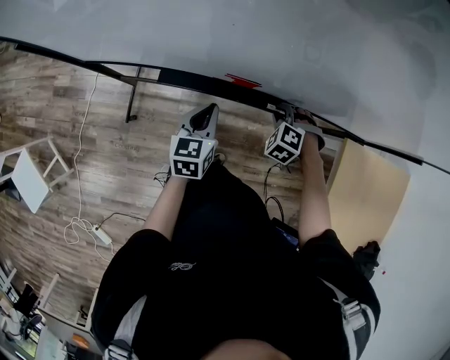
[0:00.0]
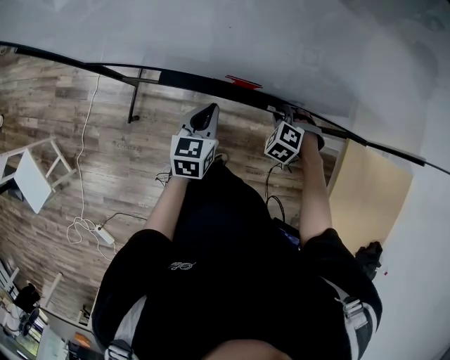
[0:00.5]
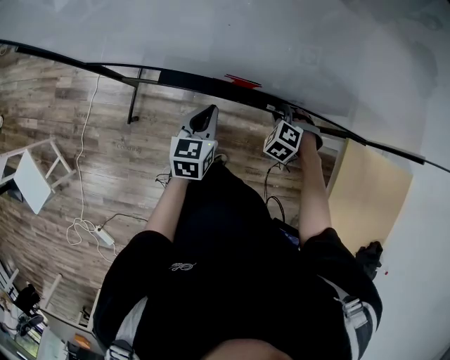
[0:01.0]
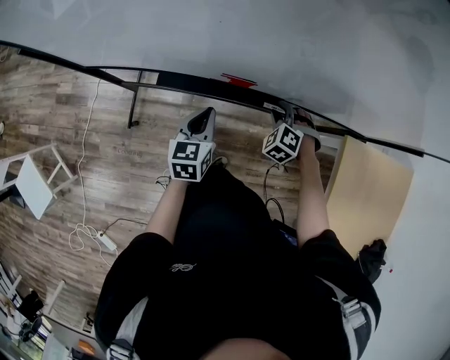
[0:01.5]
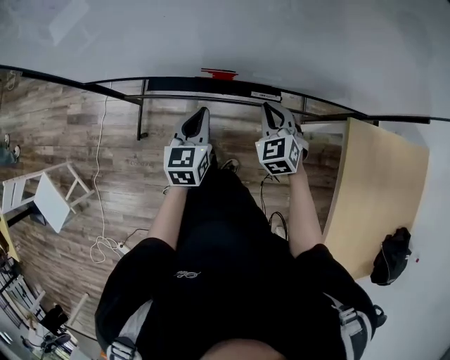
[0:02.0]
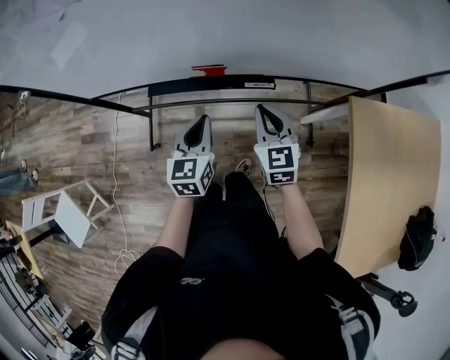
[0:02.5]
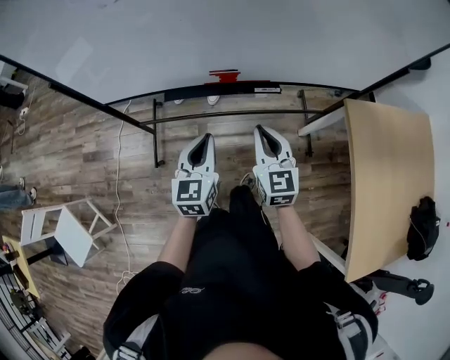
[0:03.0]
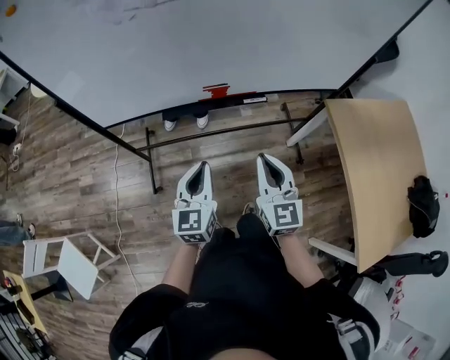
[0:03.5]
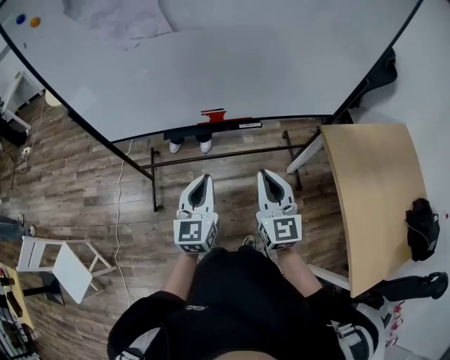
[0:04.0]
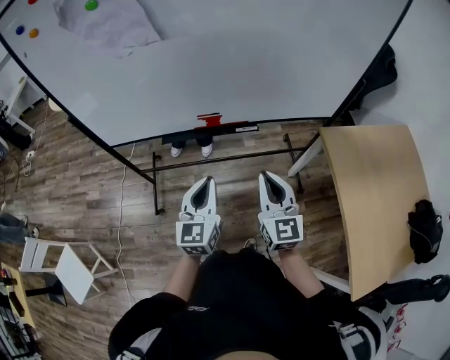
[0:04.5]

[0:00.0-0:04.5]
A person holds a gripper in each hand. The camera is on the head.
0:00.0 to 0:02.0: The right gripper is displaced upward by about 10 cm, and turns by roughly 50 degrees; the left gripper changes place by about 5 cm.
0:02.0 to 0:04.5: The grippers both shift backward and upward by about 30 cm. The right gripper points its fingers about 30 degrees further upward. The left gripper turns by roughly 20 degrees.

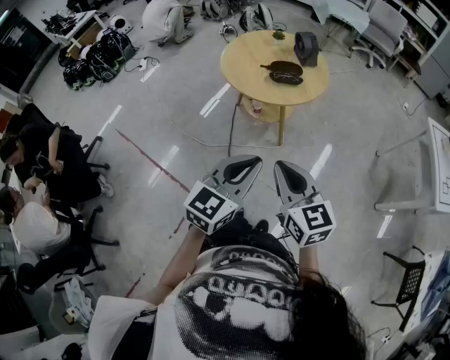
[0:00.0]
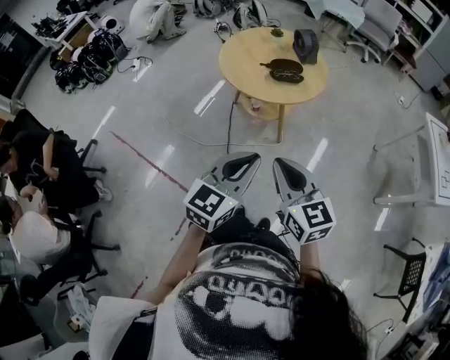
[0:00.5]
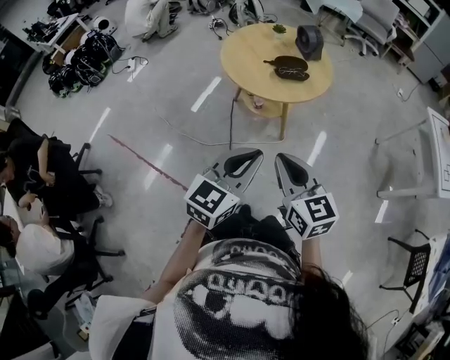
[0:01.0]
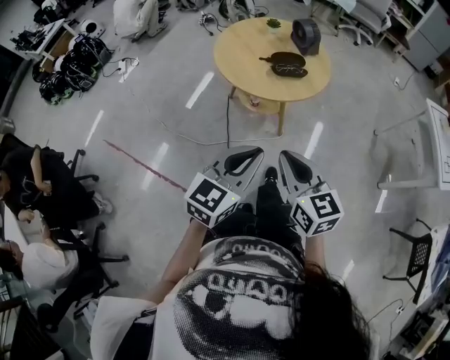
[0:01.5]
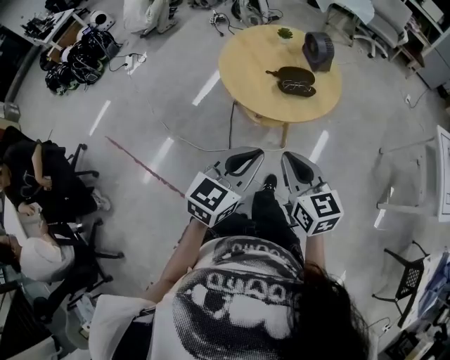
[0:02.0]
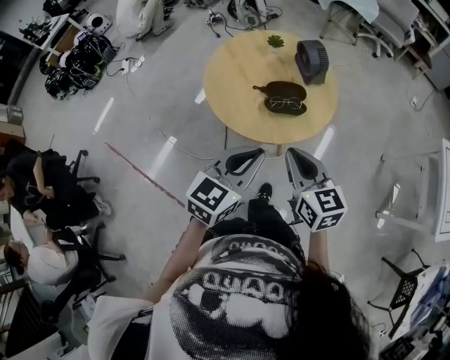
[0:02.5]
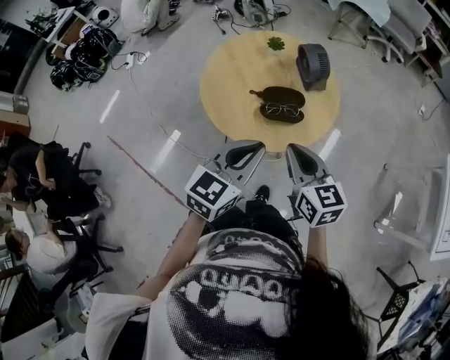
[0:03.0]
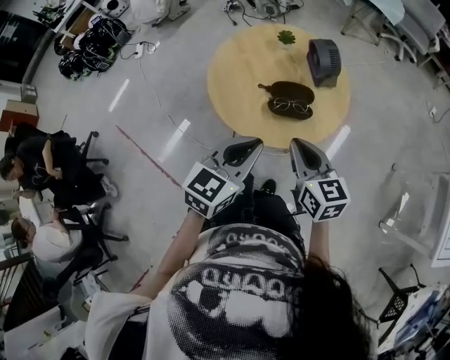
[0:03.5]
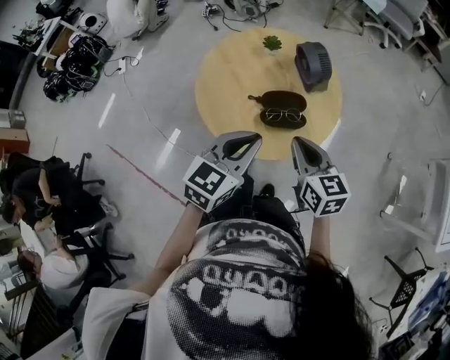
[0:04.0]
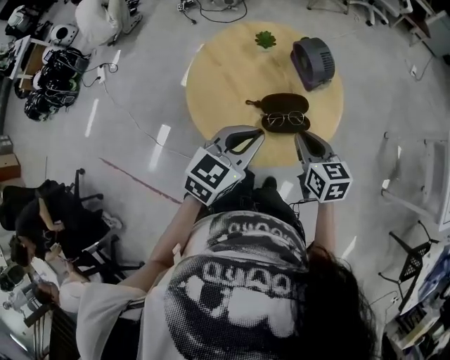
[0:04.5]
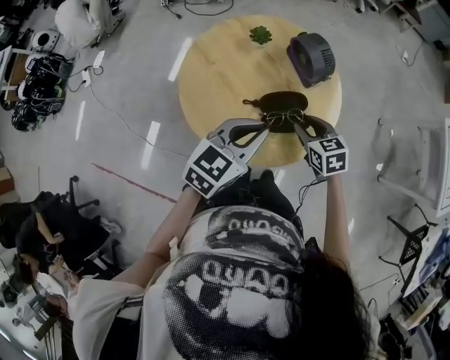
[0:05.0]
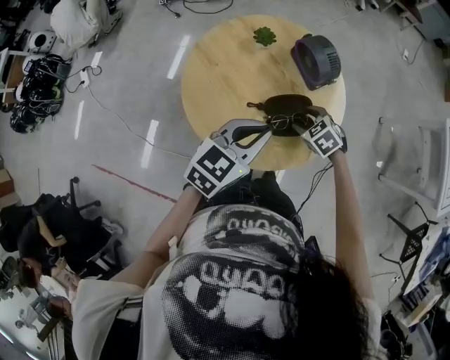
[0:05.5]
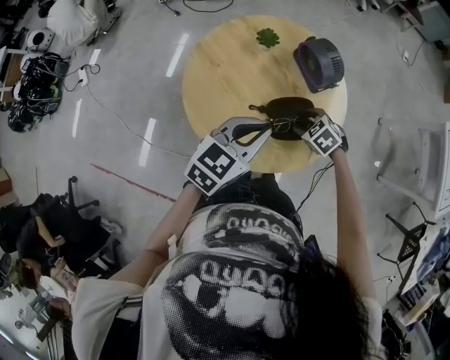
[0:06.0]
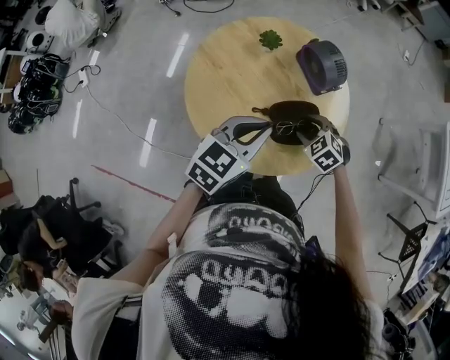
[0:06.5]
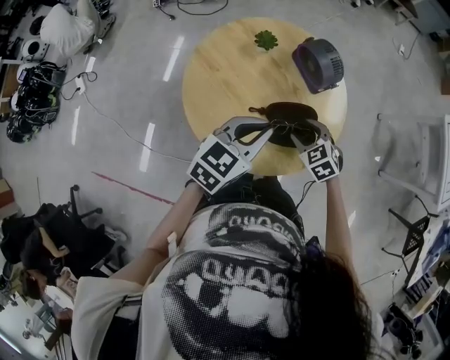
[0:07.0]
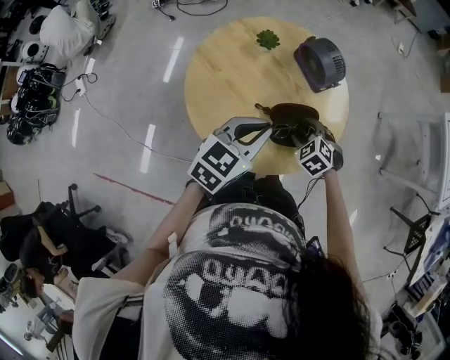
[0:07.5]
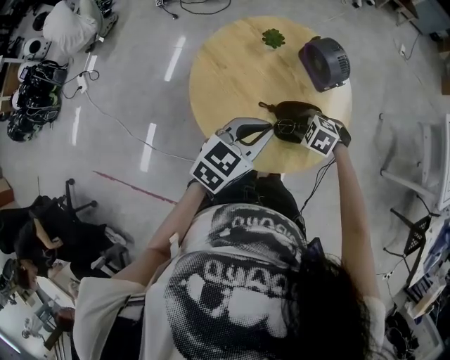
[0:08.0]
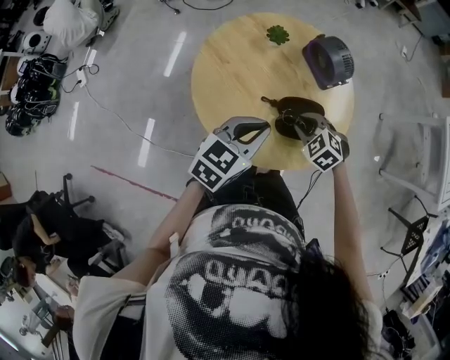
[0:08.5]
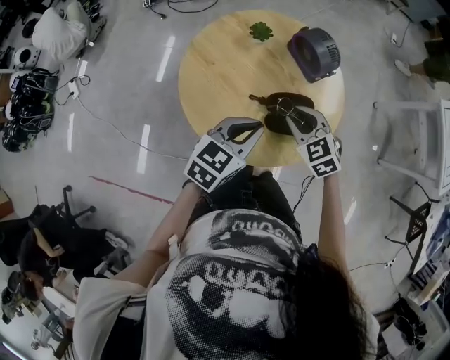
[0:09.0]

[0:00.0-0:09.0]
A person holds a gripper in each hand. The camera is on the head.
0:00.0 to 0:02.0: The right gripper is displaced forward by roughly 15 cm; the left gripper is displaced forward and to the left by approximately 20 cm.
0:02.0 to 0:04.5: Both grippers move forward, about 30 cm.
0:04.5 to 0:07.0: The right gripper shifts approximately 10 cm downward, turns by some 40 degrees, and opens, while the left gripper is displaced forward by about 5 cm.
0:07.0 to 0:09.0: The right gripper travels upward by about 5 cm, and closes its fingers.

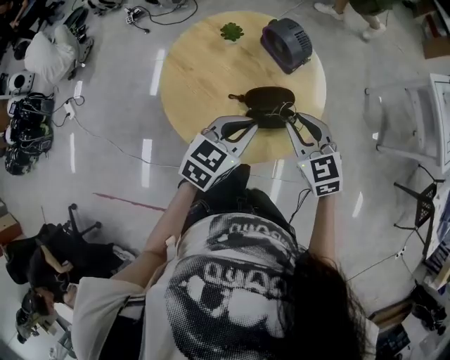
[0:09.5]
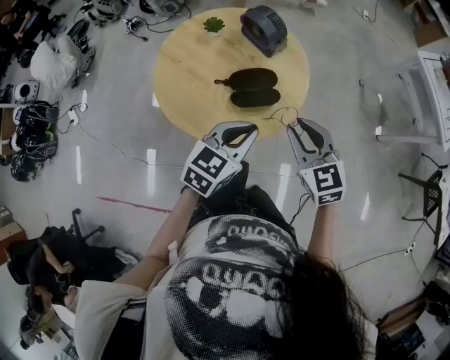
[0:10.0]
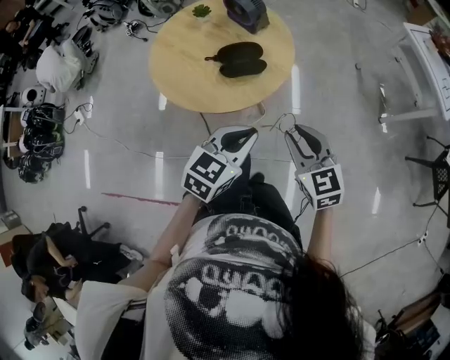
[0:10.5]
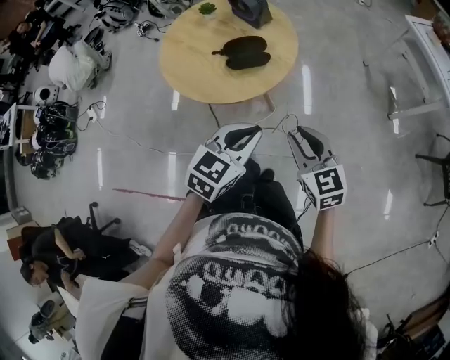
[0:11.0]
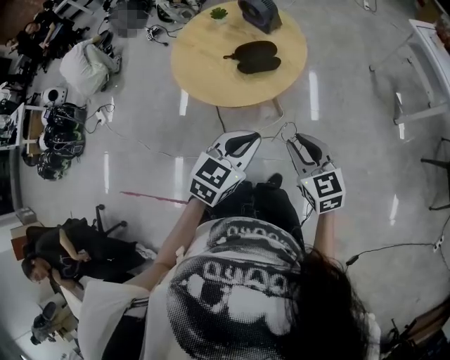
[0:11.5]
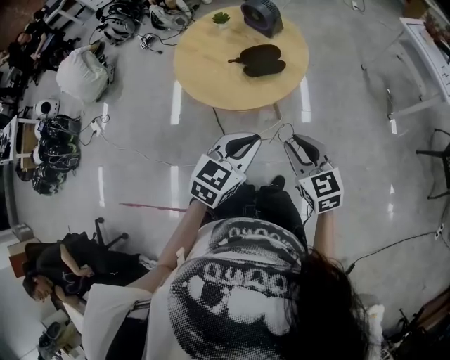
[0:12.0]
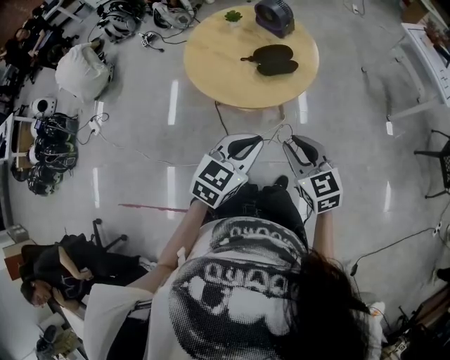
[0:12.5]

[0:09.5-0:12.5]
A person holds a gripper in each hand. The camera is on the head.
0:09.5 to 0:11.0: The two grippers go approximately 30 cm backward and to the right.
0:11.0 to 0:12.5: The grippers both shift to the left and backward by approximately 15 cm.

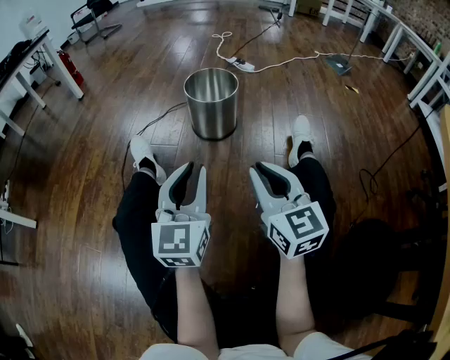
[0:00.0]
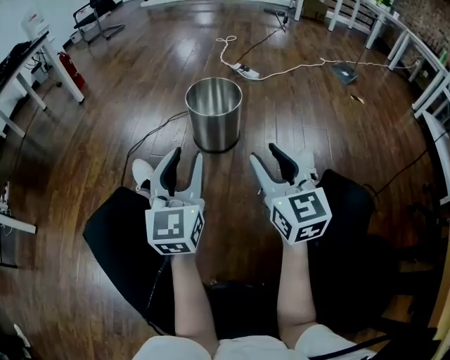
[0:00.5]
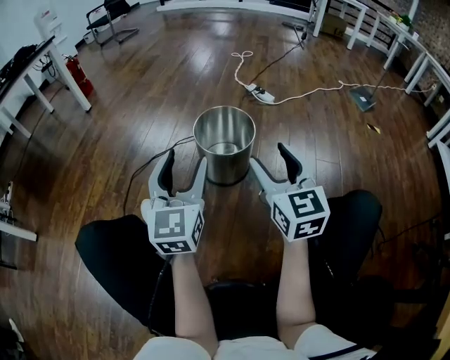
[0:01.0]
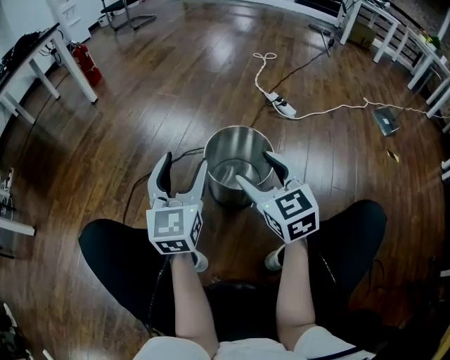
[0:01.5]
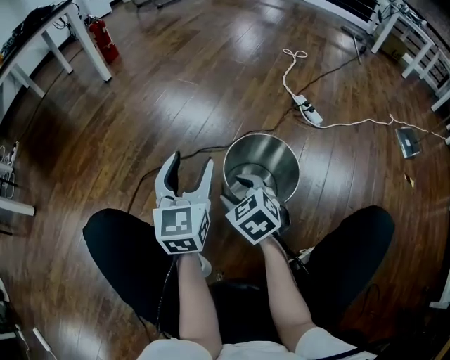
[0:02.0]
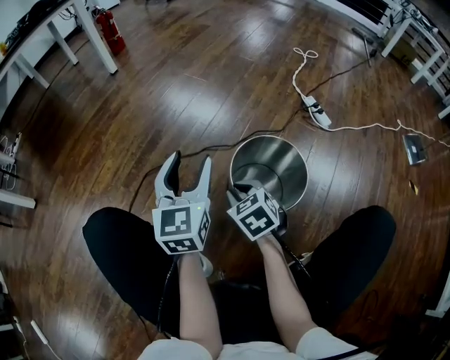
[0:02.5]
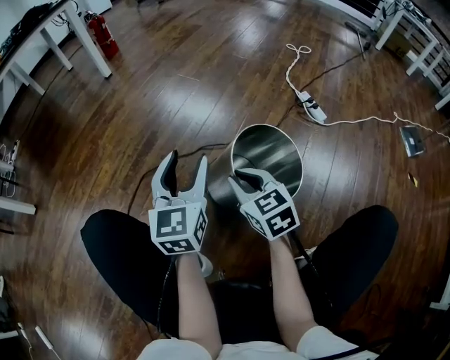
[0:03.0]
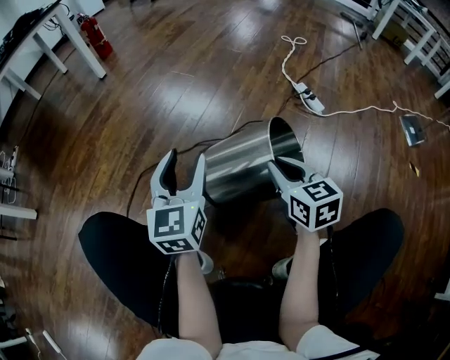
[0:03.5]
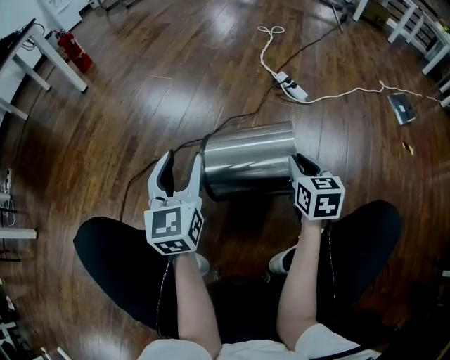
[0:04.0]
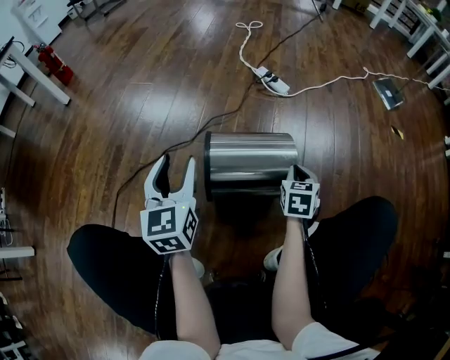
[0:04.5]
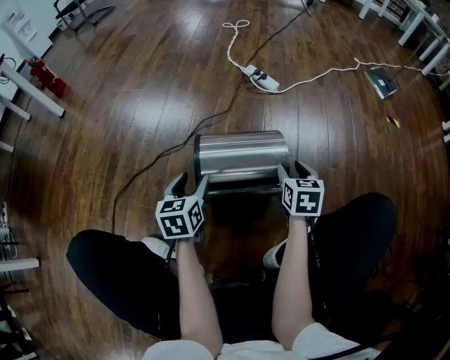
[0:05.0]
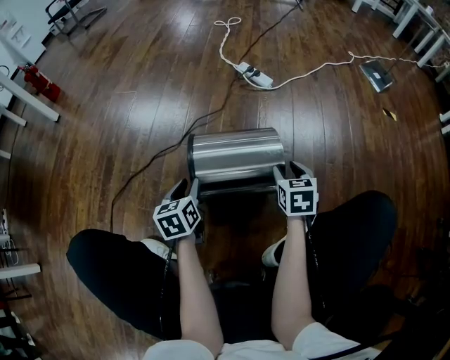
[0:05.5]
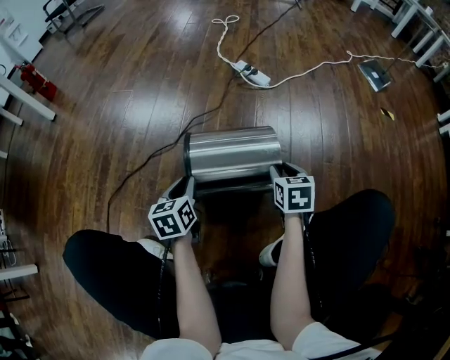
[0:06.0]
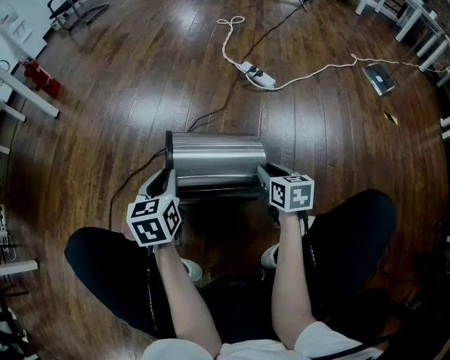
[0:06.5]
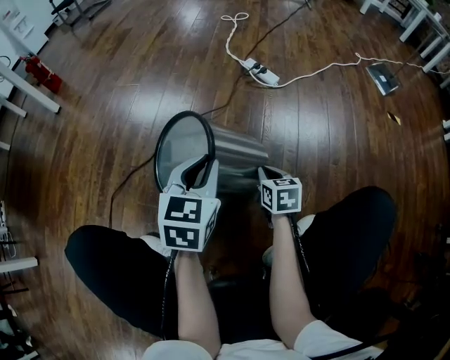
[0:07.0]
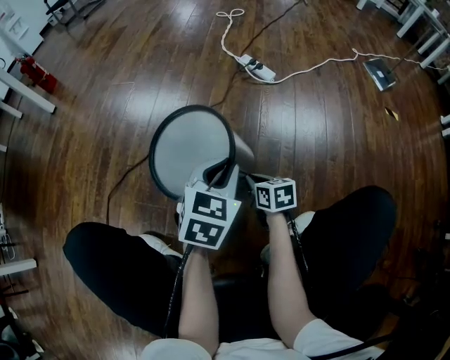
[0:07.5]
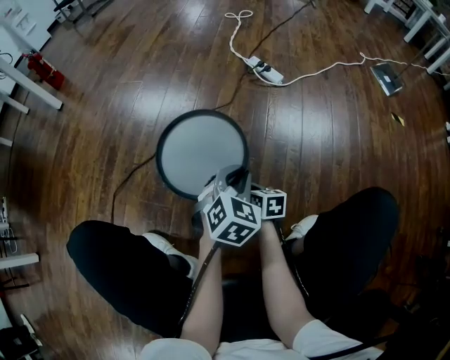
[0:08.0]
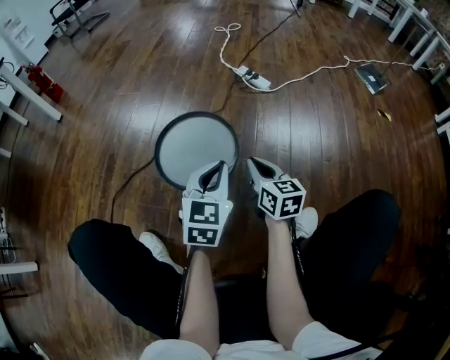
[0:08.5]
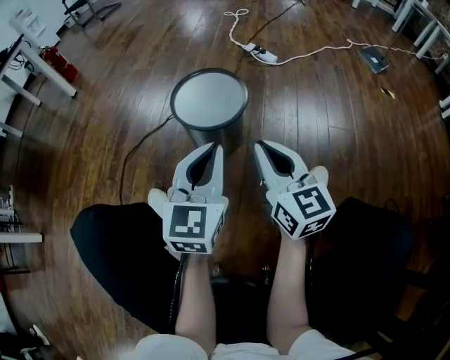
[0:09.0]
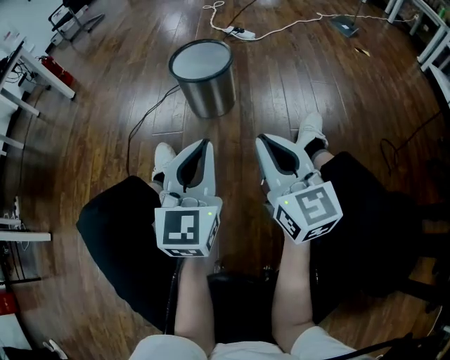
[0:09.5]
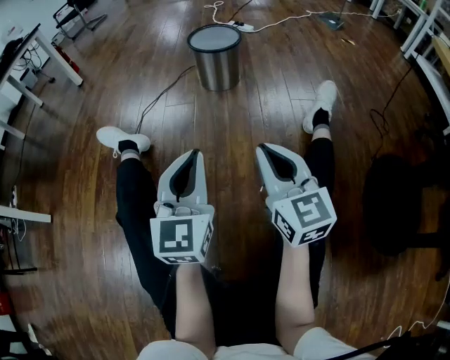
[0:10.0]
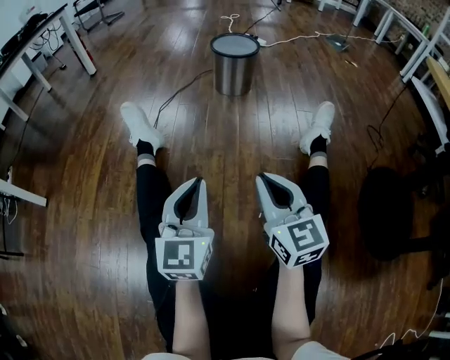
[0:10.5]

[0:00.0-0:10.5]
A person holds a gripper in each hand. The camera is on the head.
0:00.0 to 0:02.0: The pair of grippers is taken approximately 40 cm. The right gripper points its fingers some 40 degrees further downward, and opens up; the left gripper rotates some 20 degrees, and opens.
0:02.0 to 0:04.0: The left gripper goes approximately 5 cm to the right. The right gripper goes roughly 25 cm to the right, turns by approximately 50 degrees, and closes its fingers.
0:04.0 to 0:06.5: Both grippers move downward, some 10 cm. The left gripper rotates roughly 30 degrees, and closes its fingers.
0:06.5 to 0:08.5: The right gripper travels upward by some 5 cm, while the left gripper is displaced to the right by about 15 cm, and changes its angle by about 30 degrees.
0:08.5 to 0:10.5: The two grippers travel together, backward, about 70 cm. The right gripper swivels roughly 20 degrees.
